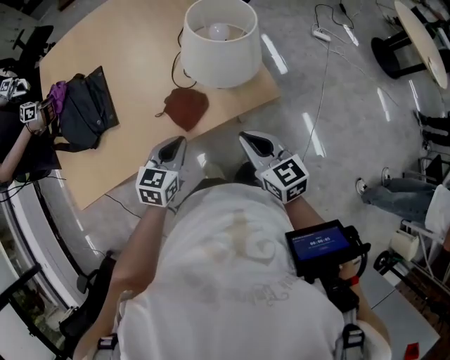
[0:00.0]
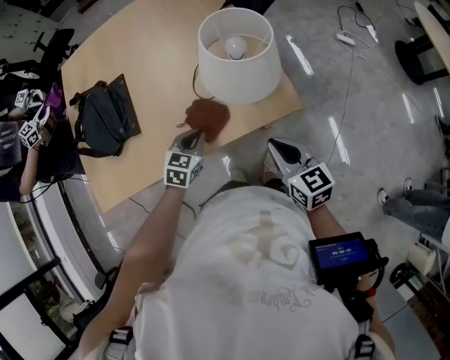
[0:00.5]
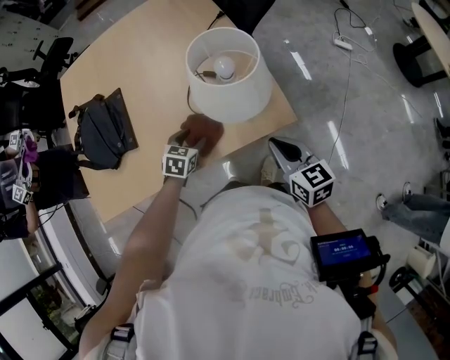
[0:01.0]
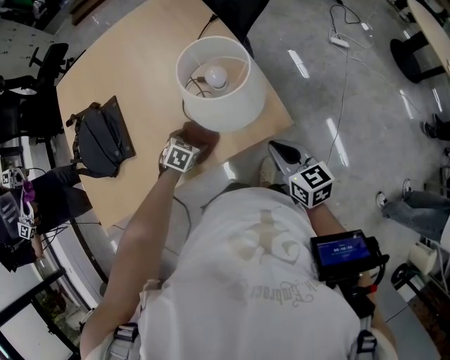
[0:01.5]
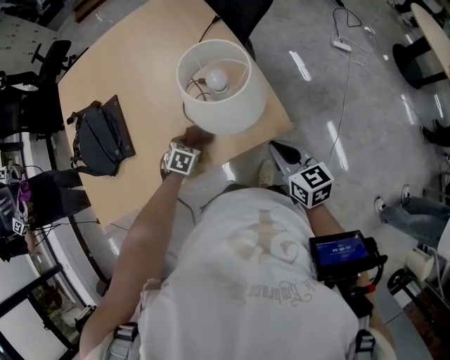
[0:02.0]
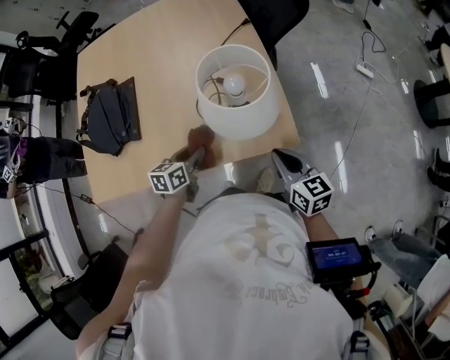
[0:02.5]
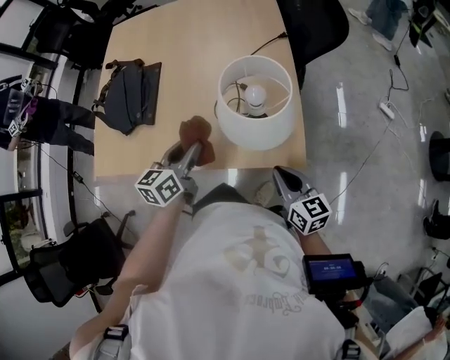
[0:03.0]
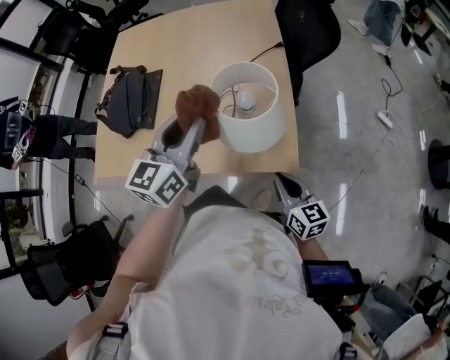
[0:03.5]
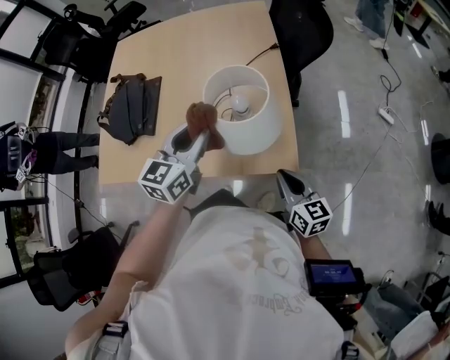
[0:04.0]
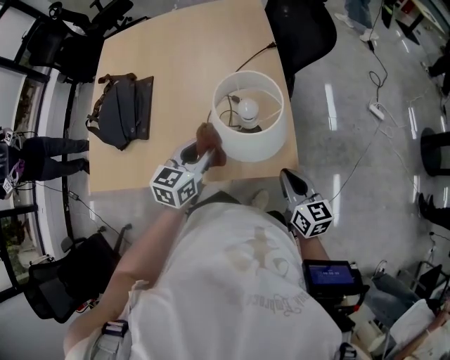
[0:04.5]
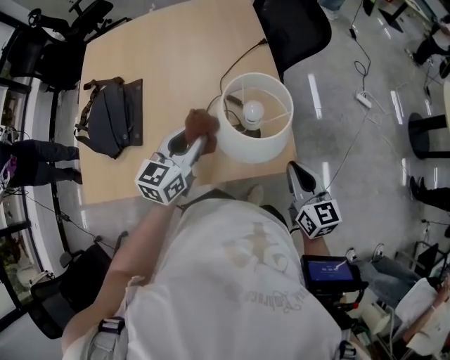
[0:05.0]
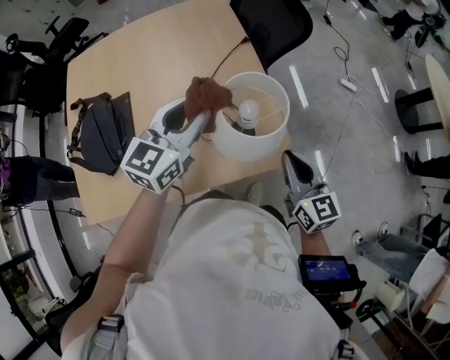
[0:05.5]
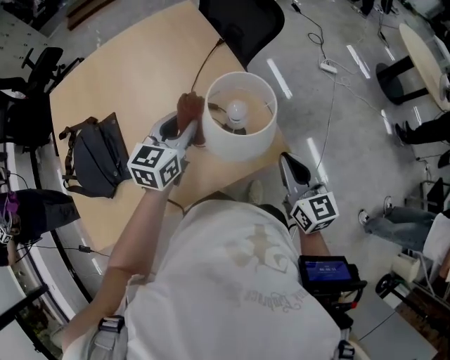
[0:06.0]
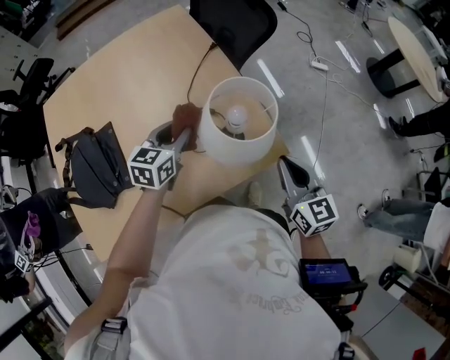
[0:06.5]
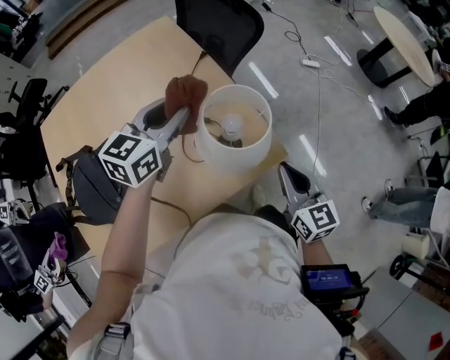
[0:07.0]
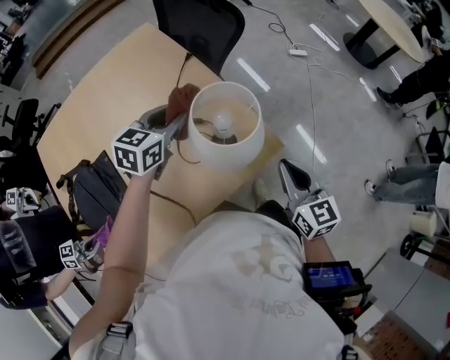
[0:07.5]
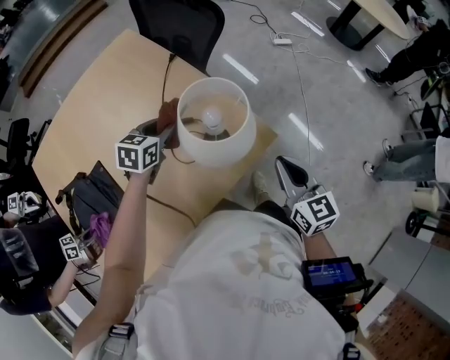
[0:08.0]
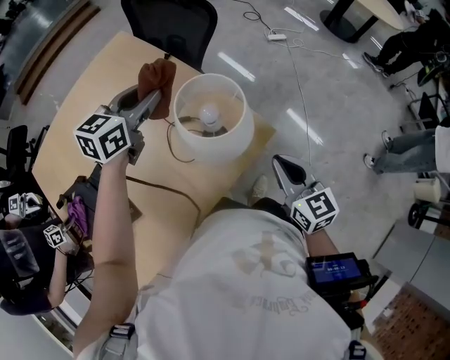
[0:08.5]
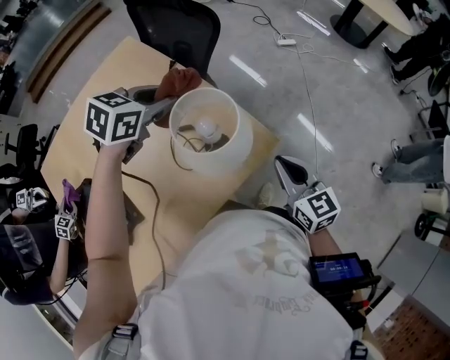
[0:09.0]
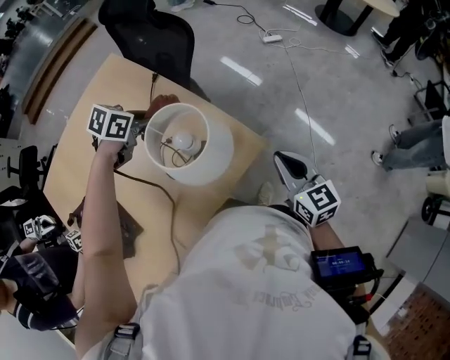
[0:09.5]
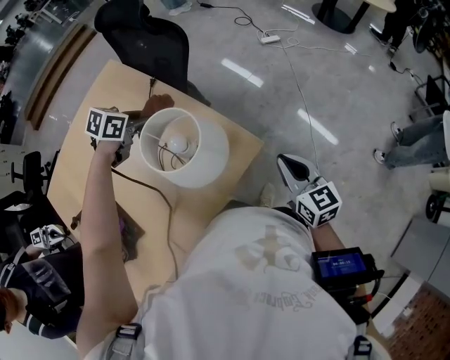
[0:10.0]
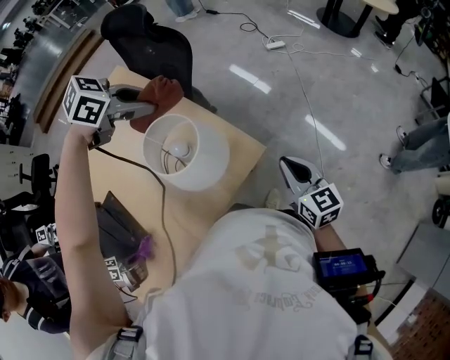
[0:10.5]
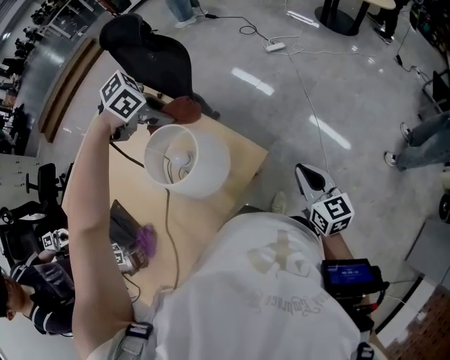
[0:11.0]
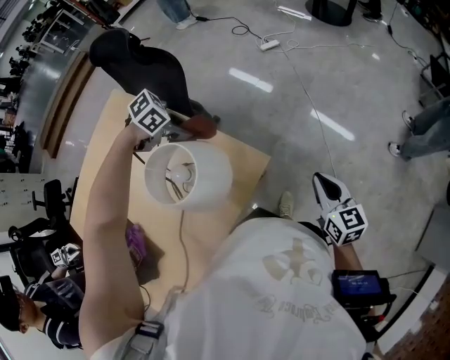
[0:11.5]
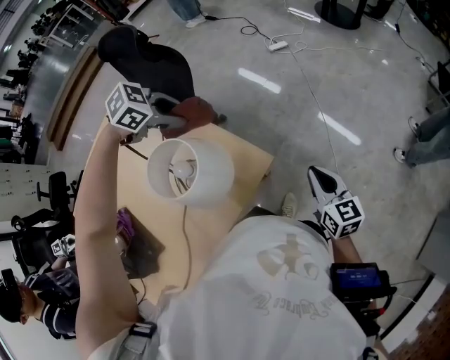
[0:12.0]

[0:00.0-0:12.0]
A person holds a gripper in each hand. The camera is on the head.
0:00.0 to 0:02.0: The left gripper goes some 20 cm downward and forward, points its fingers about 30 degrees further downward, and opens up. The right gripper heads to the right and forward, covering about 10 cm.
0:02.0 to 0:04.0: The left gripper moves upward, about 30 cm, and angles its fingers upward, by about 50 degrees.
0:04.0 to 0:06.0: The right gripper is displaced upward by some 10 cm, and rotates roughly 30 degrees. Meanwhile the left gripper moves up and down over approximately 15 cm, changing direction 2 times, and turns by about 30 degrees.
0:06.0 to 0:08.0: The left gripper swings up and down, some 15 cm each way, with 2 reversals, and rotates some 30 degrees.
0:08.0 to 0:10.0: The left gripper is displaced forward by some 5 cm, travels upward and back again, approximately 15 cm each way, and swivels roughly 30 degrees, while the right gripper shifts some 5 cm to the right.
0:10.0 to 0:12.0: The left gripper moves up and down over some 15 cm, changing direction 2 times, and turns by roughly 40 degrees, while the right gripper changes place by about 10 cm.

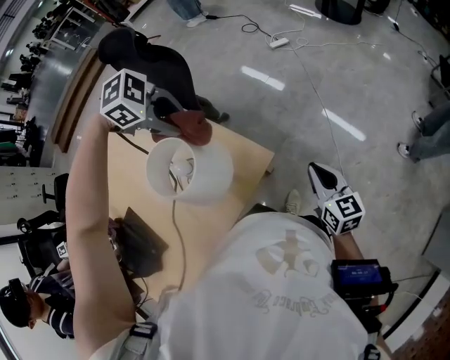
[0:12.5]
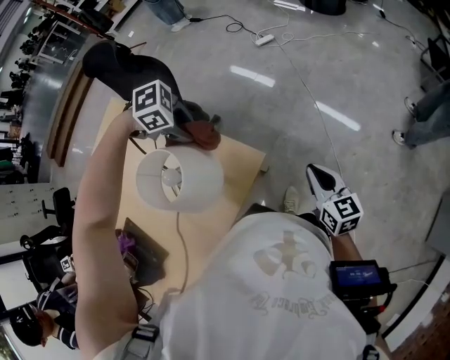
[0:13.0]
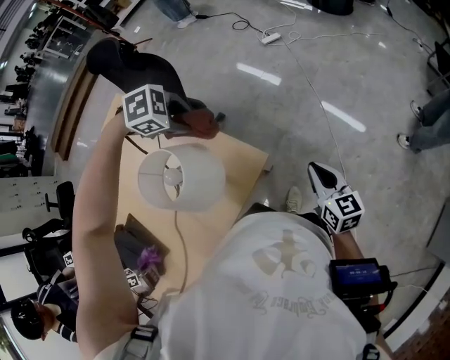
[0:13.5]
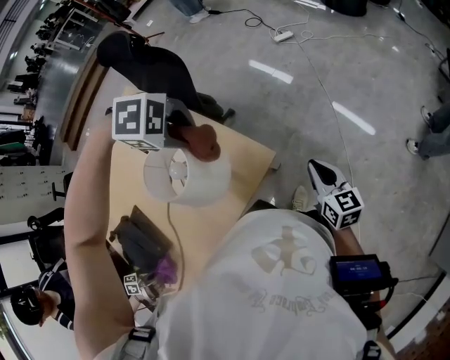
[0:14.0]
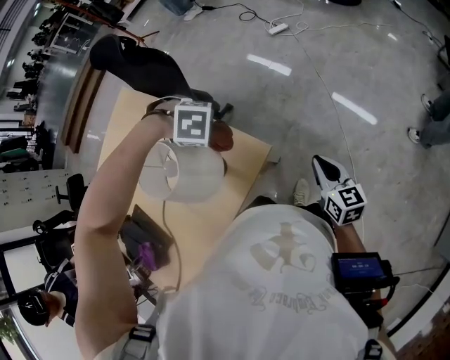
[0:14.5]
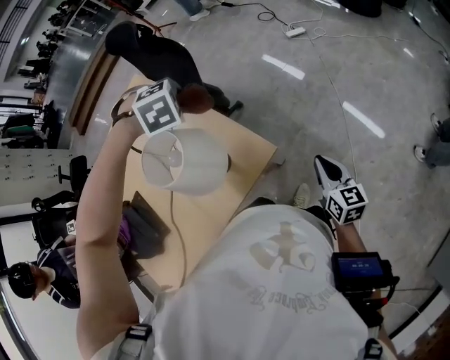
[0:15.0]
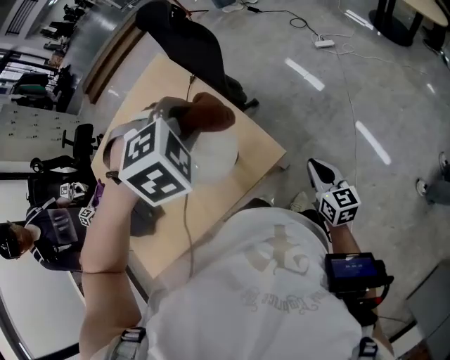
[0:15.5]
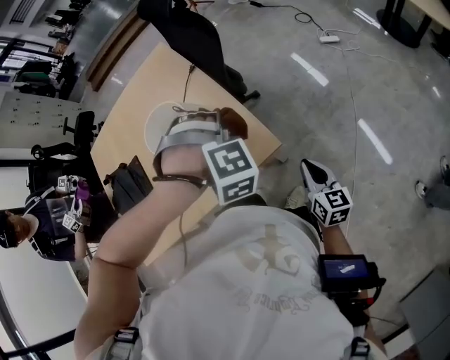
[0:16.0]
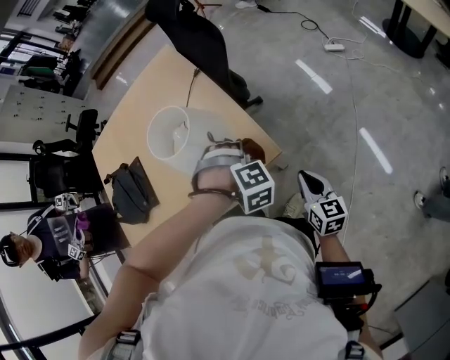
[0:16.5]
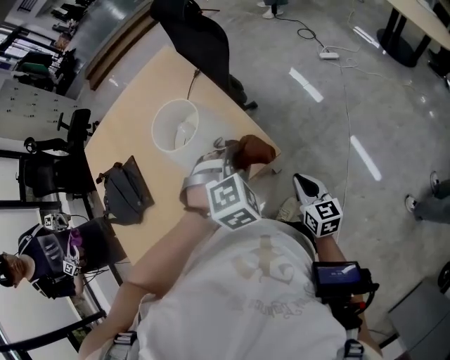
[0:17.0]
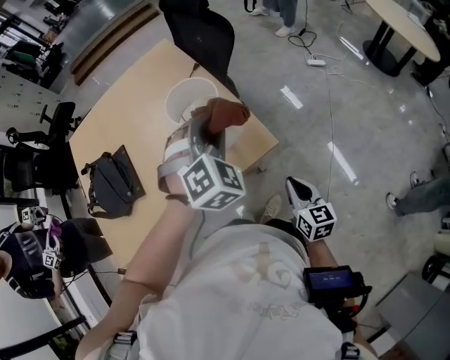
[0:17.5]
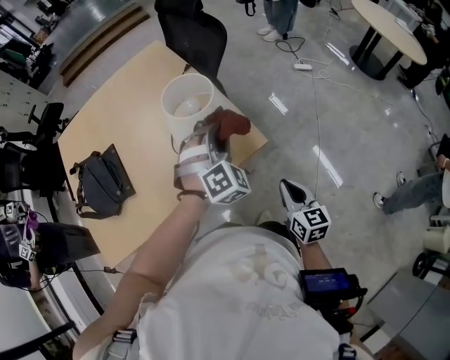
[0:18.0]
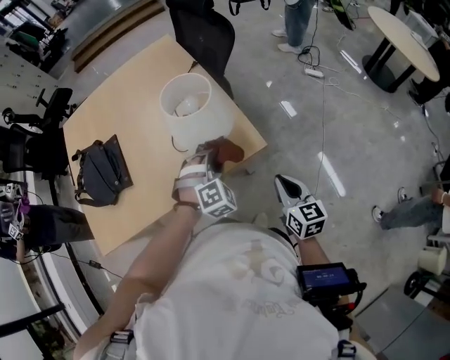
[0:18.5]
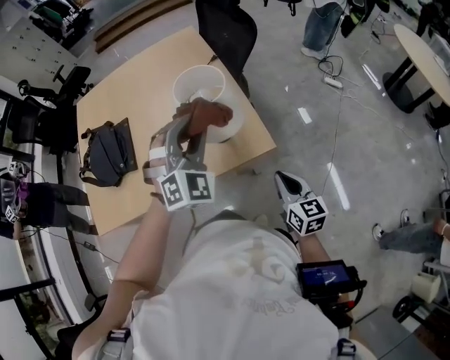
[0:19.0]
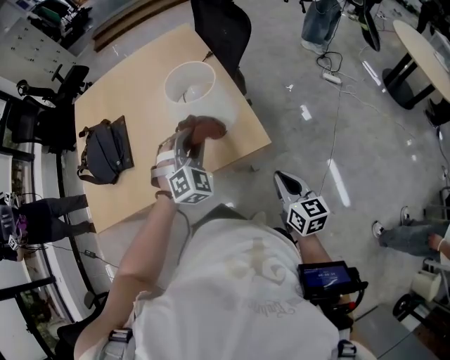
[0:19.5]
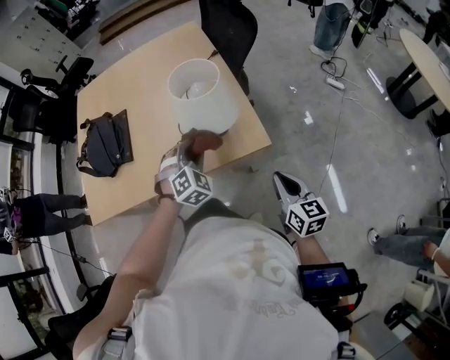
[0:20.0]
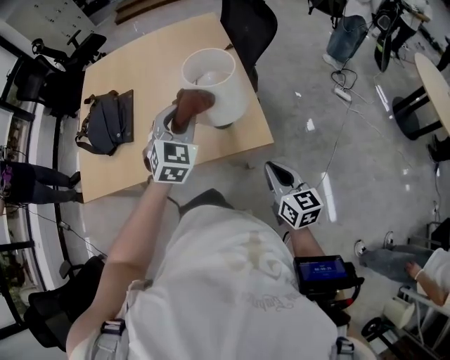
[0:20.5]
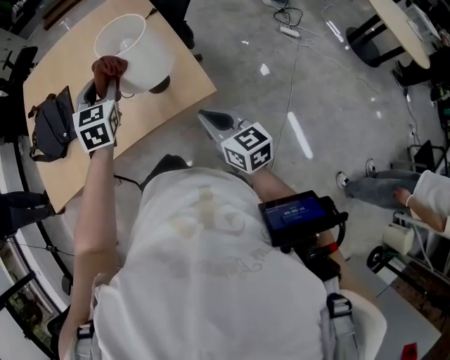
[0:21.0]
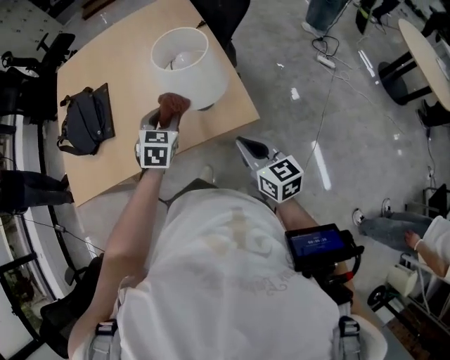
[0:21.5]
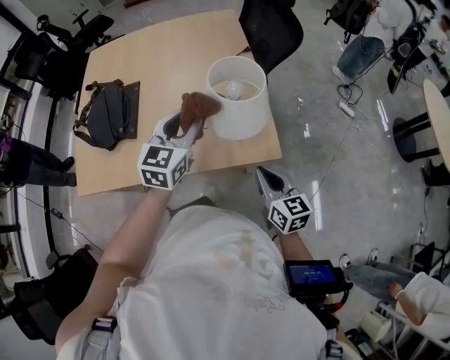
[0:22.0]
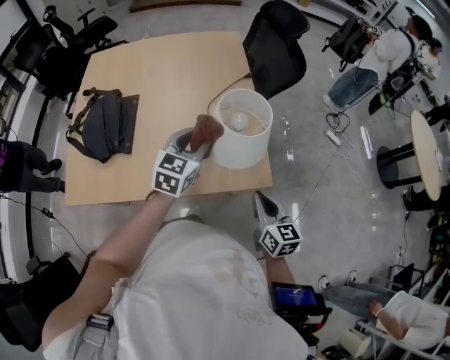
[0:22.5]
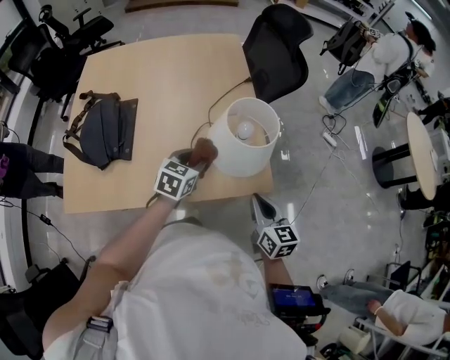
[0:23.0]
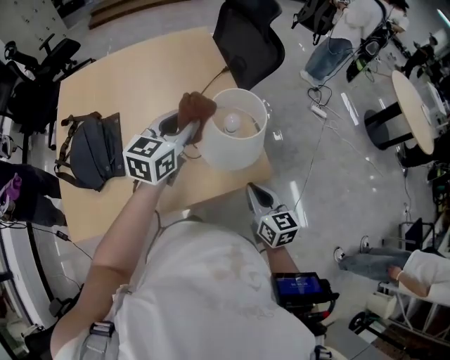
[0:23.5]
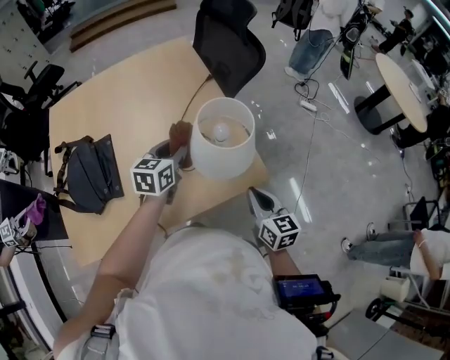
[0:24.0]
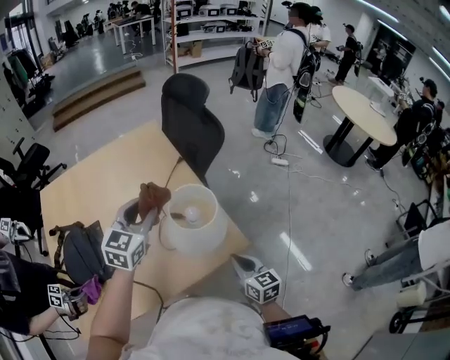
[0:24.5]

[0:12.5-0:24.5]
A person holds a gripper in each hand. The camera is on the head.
0:12.5 to 0:14.5: The left gripper swings up and down, approximately 10 cm each way, with 2 reversals, and rotates some 40 degrees.
0:14.5 to 0:16.5: The right gripper changes place by roughly 5 cm, and changes its angle by approximately 20 degrees; the left gripper moves roughly 20 cm upward and comes back, and rotates approximately 50 degrees.
0:16.5 to 0:18.5: The right gripper moves upward and to the left, roughly 10 cm; the left gripper travels to the left by roughly 5 cm, travels upward and back again, about 15 cm each way, and swivels approximately 40 degrees.
0:18.5 to 0:20.5: The left gripper goes up and down, about 20 cm each way, reversing 2 times, and rolls counterclockwise, seen from behind, by approximately 40 degrees.
0:20.5 to 0:22.5: The left gripper swings up and down, approximately 10 cm each way, with 2 reversals, and turns by some 30 degrees; the right gripper shifts about 10 cm forward and to the left.
0:22.5 to 0:24.5: The left gripper moves up and down over about 20 cm, changing direction 3 times.

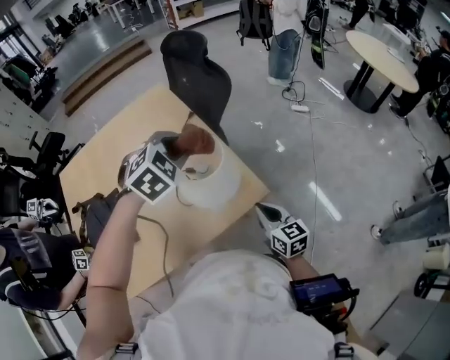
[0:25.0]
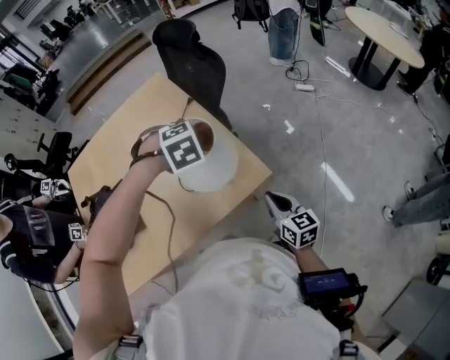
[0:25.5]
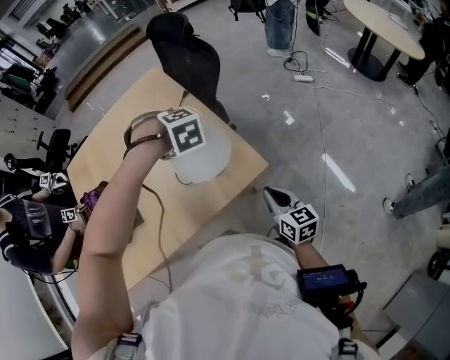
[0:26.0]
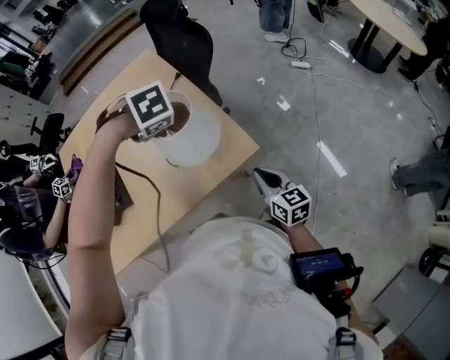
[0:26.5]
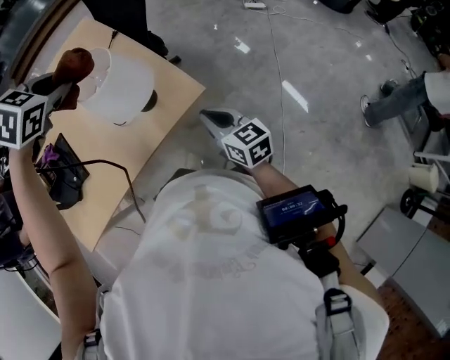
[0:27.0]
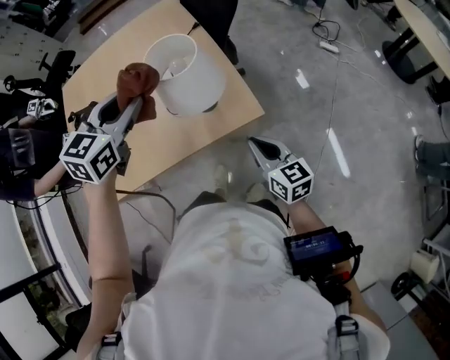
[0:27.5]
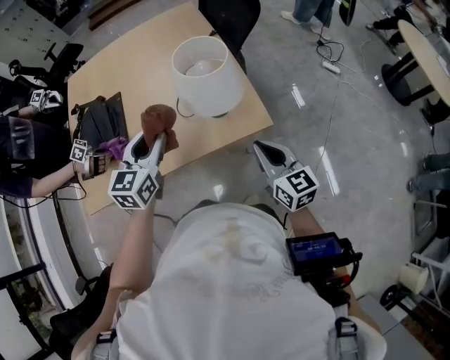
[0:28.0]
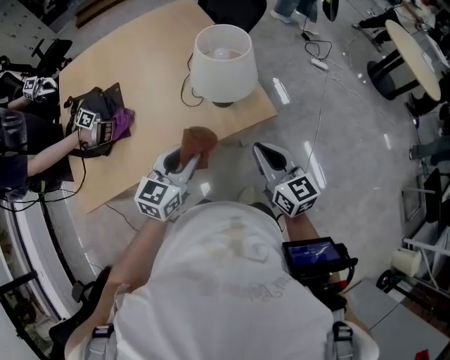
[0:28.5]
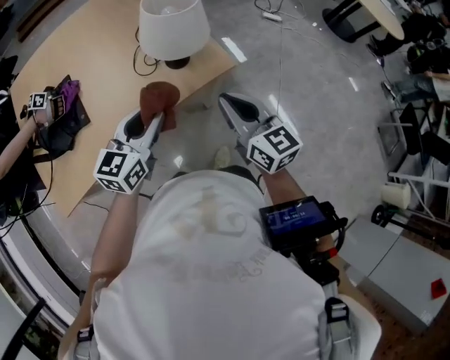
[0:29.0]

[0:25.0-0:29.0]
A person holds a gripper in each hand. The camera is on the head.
0:25.0 to 0:27.0: The right gripper moves some 5 cm. Meanwhile the left gripper travels downward and back again, approximately 10 cm each way, and rotates some 20 degrees.
0:27.0 to 0:29.0: The left gripper goes about 25 cm backward and downward, and tips its fingers upward by some 40 degrees. Meanwhile the right gripper moves to the left, upward and backward, about 20 cm.
